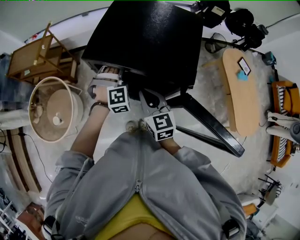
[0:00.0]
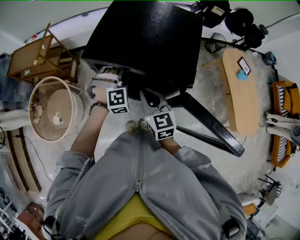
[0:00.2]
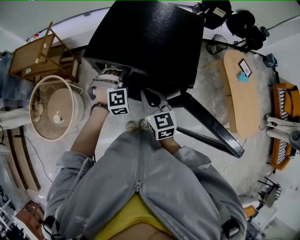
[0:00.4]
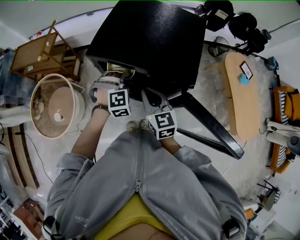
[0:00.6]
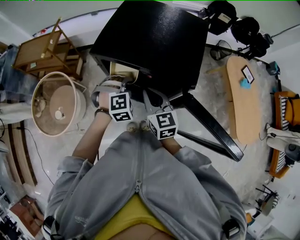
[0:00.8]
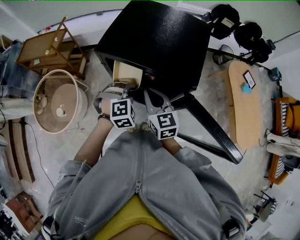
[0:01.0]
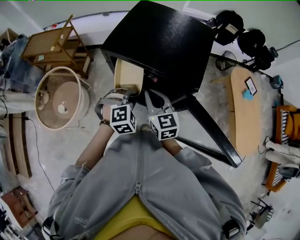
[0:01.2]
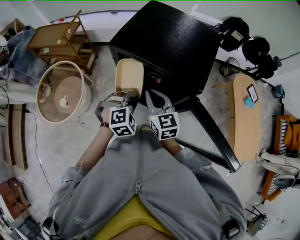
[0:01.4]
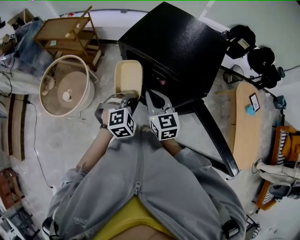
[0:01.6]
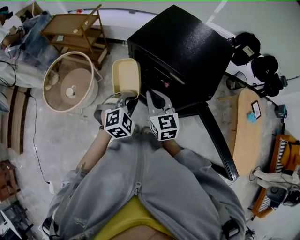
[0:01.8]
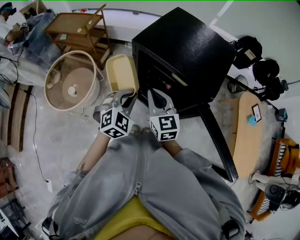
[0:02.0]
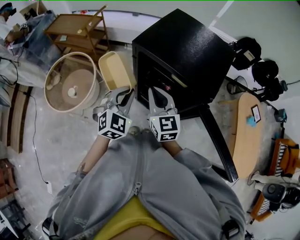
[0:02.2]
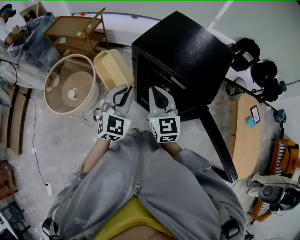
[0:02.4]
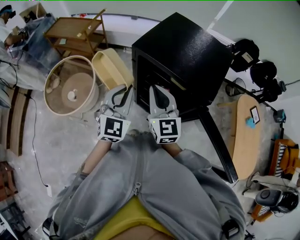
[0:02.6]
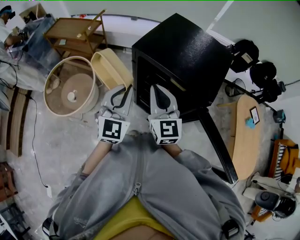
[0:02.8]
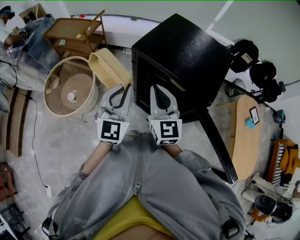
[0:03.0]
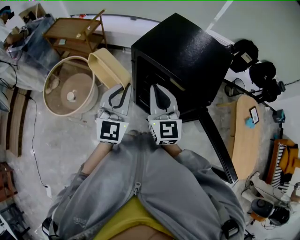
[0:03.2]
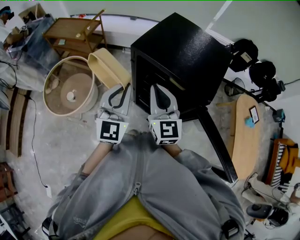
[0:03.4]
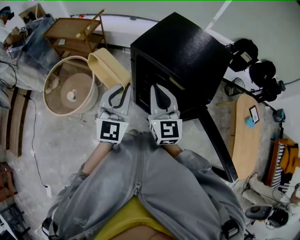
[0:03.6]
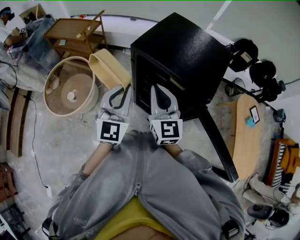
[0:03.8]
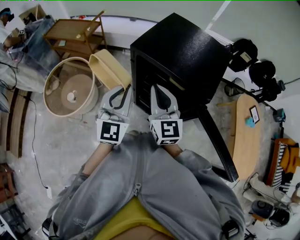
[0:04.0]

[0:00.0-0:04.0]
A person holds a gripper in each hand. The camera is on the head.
0:00.0 to 0:01.4: The left gripper moves backward, approximately 15 cm, swivels roughly 20 degrees, and closes.
0:01.4 to 0:02.6: The right gripper moves upward and to the left, roughly 10 cm. Meanwhile the left gripper travels upward and to the left by some 20 cm, and points its fingers some 40 degrees further upward.
0:02.6 to 0:04.0: The grippers make only small movements.

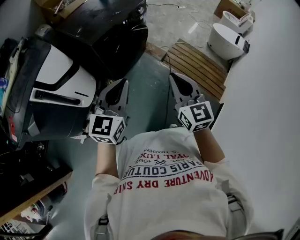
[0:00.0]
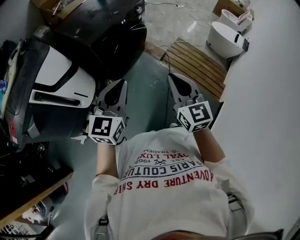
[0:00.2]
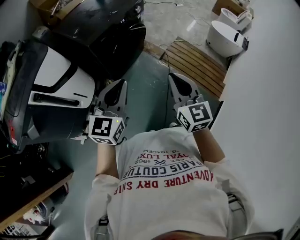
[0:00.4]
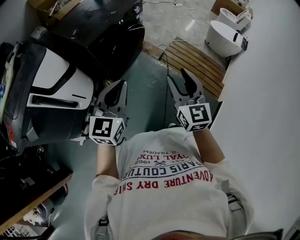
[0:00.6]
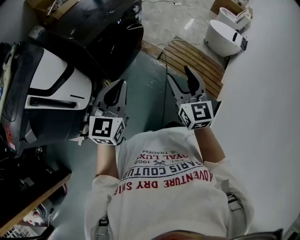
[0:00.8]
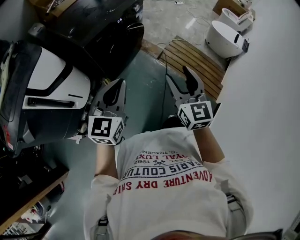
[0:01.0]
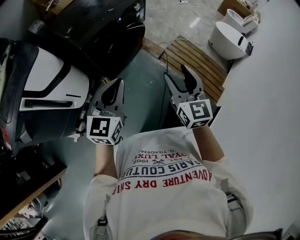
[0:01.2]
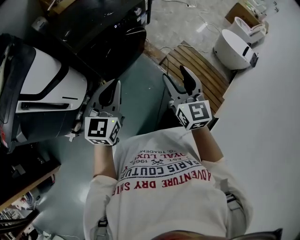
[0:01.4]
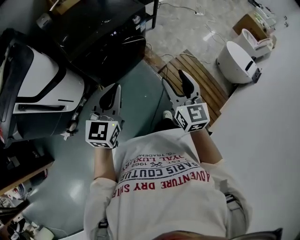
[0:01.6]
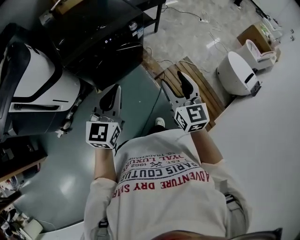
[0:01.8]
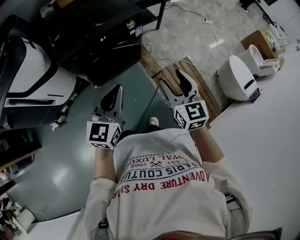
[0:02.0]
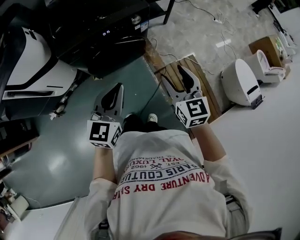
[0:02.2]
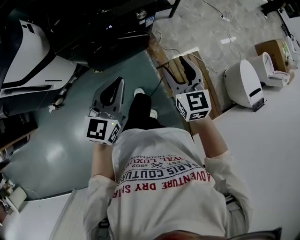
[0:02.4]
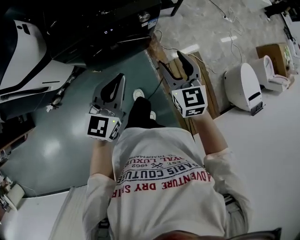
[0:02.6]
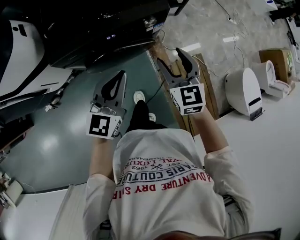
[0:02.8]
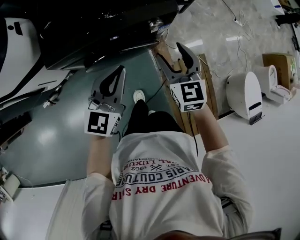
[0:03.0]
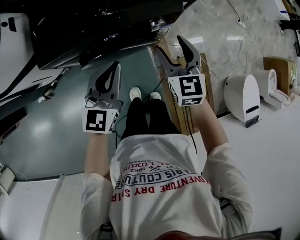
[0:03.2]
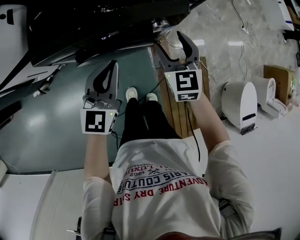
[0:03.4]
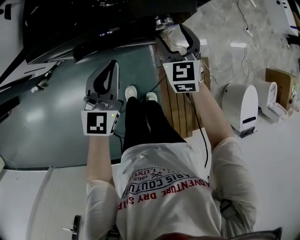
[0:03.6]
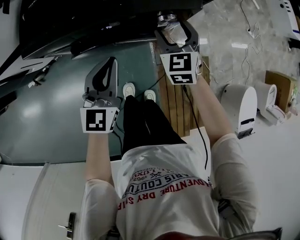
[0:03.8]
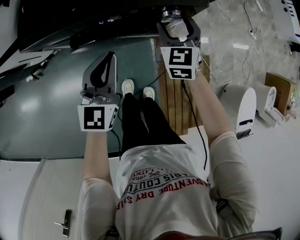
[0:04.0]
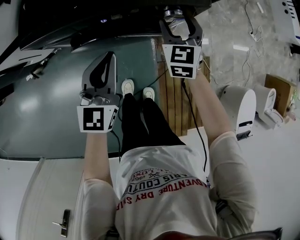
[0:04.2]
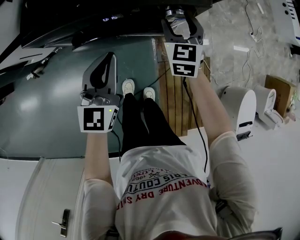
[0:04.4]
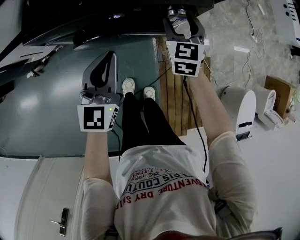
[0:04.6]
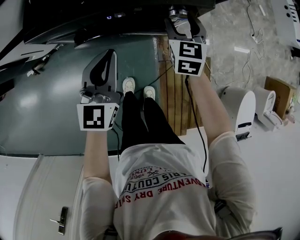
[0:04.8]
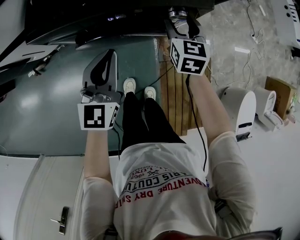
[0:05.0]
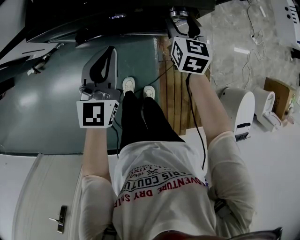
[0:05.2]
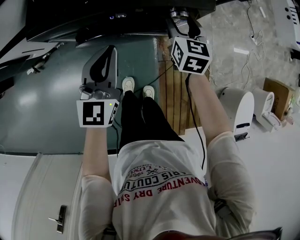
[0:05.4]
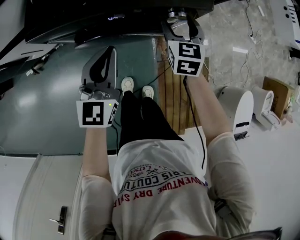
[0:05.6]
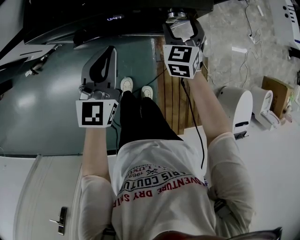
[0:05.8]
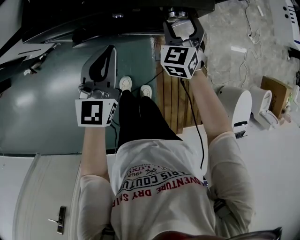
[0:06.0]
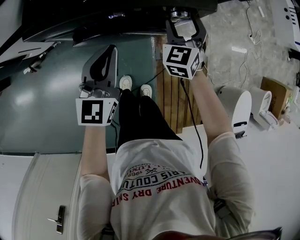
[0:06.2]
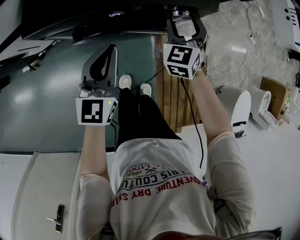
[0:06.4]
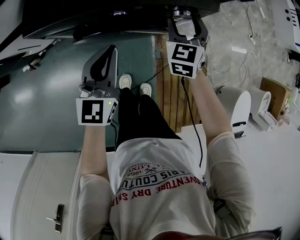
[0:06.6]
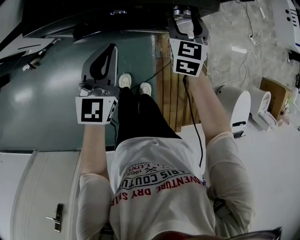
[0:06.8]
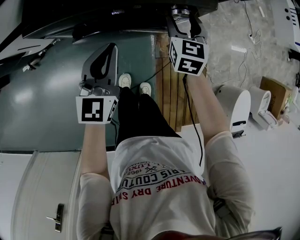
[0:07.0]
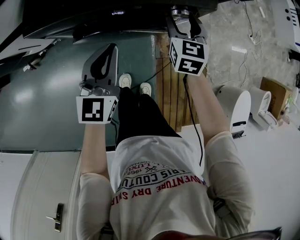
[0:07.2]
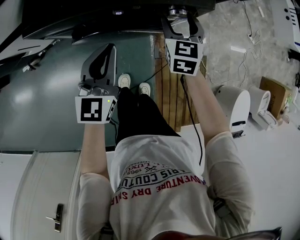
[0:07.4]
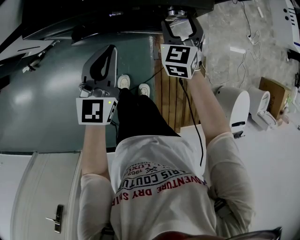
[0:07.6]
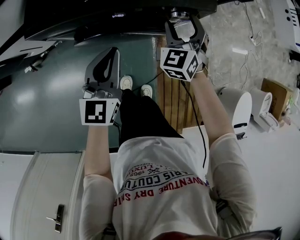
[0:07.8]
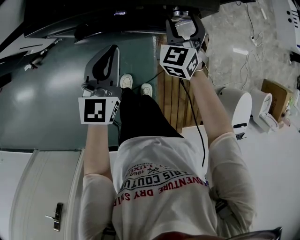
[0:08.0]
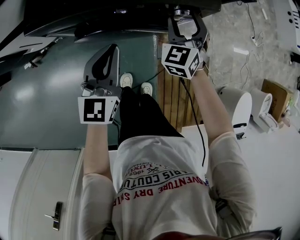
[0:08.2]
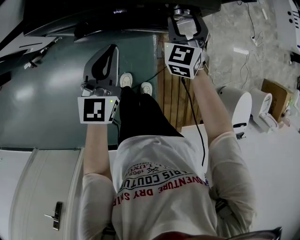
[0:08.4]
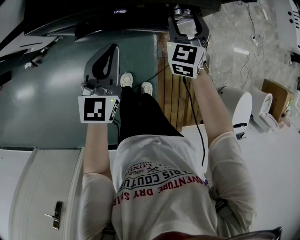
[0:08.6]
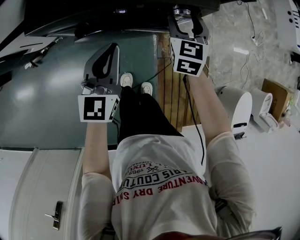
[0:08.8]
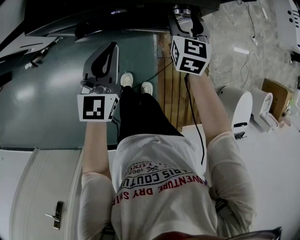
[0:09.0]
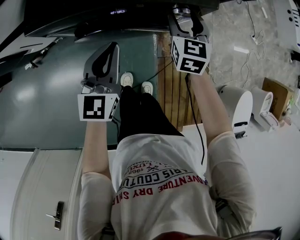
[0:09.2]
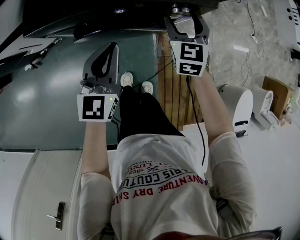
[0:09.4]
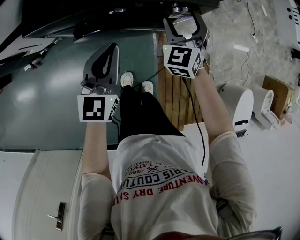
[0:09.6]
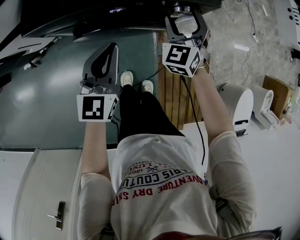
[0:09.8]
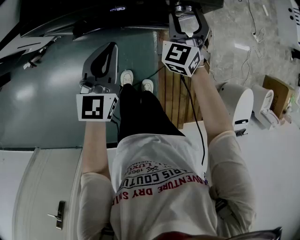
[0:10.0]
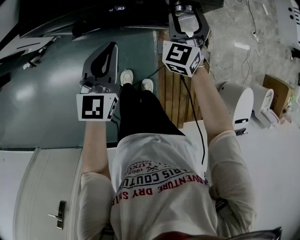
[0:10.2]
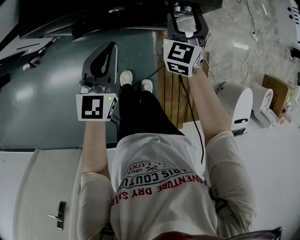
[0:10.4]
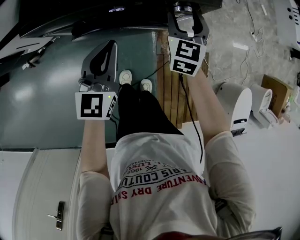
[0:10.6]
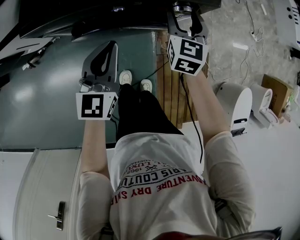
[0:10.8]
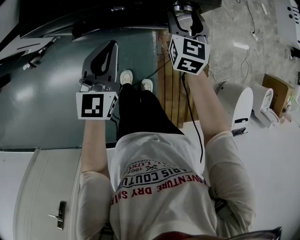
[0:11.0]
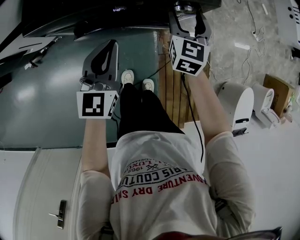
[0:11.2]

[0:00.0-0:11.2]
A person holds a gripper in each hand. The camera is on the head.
0:00.0 to 0:01.6: Both grippers travel together forward and to the right, approximately 25 cm. The right gripper opens.
0:01.6 to 0:03.2: The right gripper heads forward, covering some 40 cm, and swivels some 30 degrees. The left gripper goes approximately 35 cm forward and downward, and turns by about 20 degrees.
0:03.2 to 0:04.8: The right gripper heads downward and forward, covering about 15 cm. The left gripper is displaced downward by some 5 cm.
0:09.6 to 0:11.2: The right gripper turns by approximately 30 degrees.

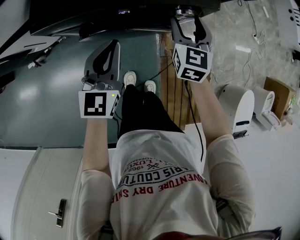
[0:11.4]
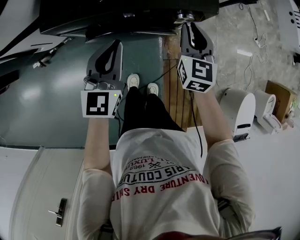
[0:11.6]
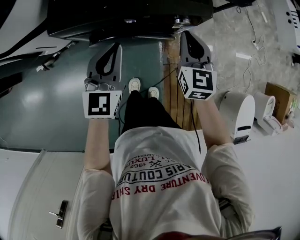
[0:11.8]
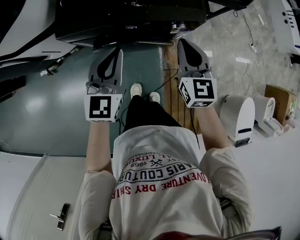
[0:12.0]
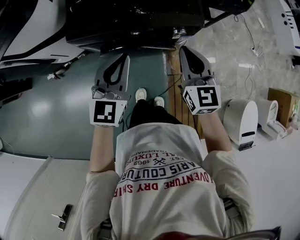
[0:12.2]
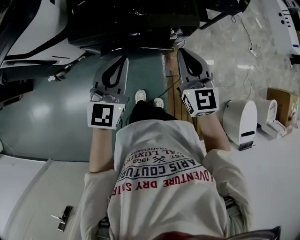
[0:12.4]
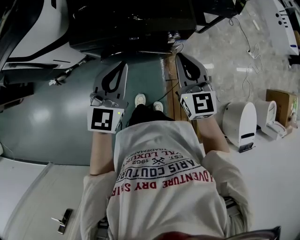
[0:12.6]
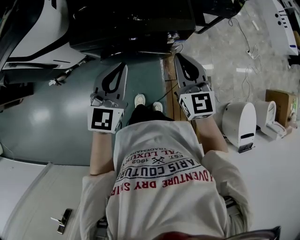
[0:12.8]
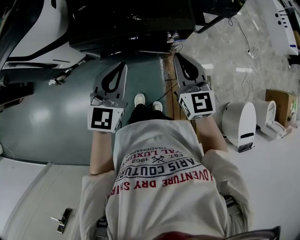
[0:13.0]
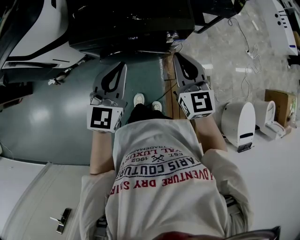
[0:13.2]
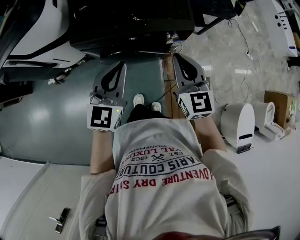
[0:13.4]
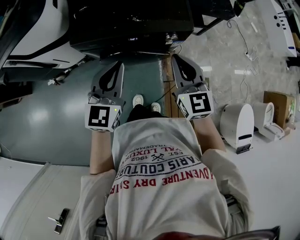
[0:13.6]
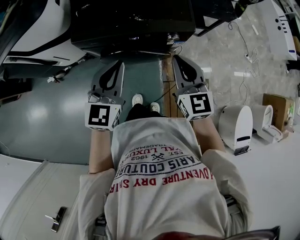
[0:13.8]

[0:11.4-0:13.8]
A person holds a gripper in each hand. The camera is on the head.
0:11.4 to 0:12.6: The right gripper heads upward and backward, covering approximately 20 cm, swivels roughly 20 degrees, and closes. The left gripper is displaced upward by roughly 15 cm.
0:12.6 to 0:13.8: The grippers stay close to where they were, moving slightly.

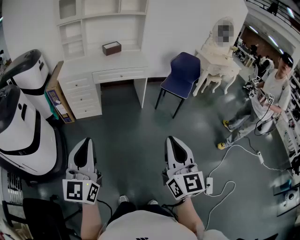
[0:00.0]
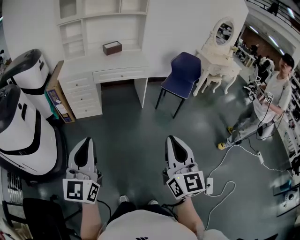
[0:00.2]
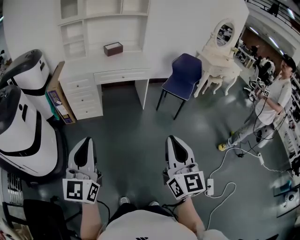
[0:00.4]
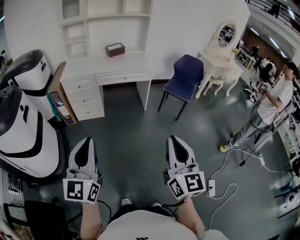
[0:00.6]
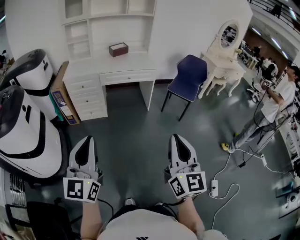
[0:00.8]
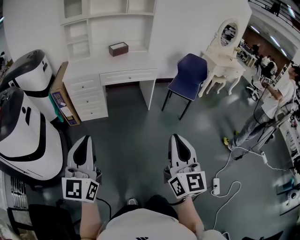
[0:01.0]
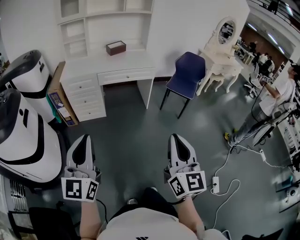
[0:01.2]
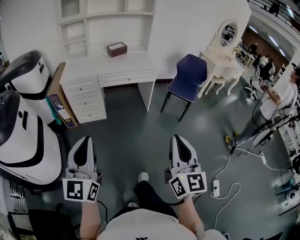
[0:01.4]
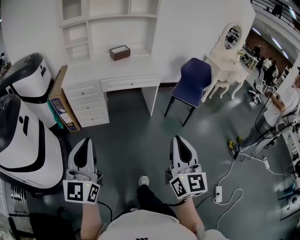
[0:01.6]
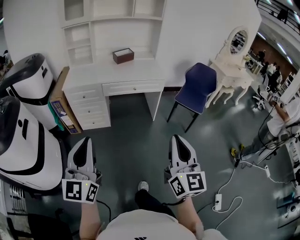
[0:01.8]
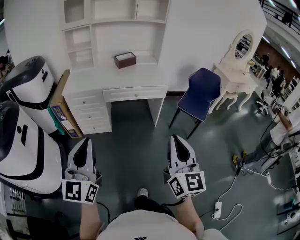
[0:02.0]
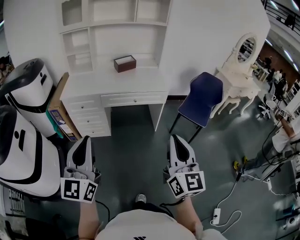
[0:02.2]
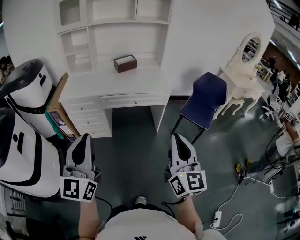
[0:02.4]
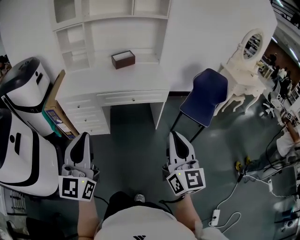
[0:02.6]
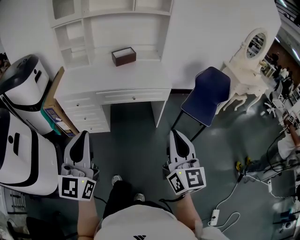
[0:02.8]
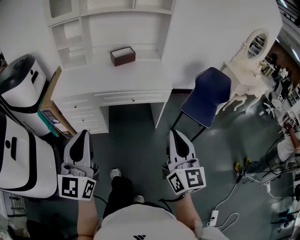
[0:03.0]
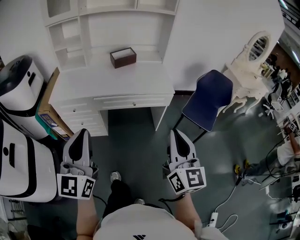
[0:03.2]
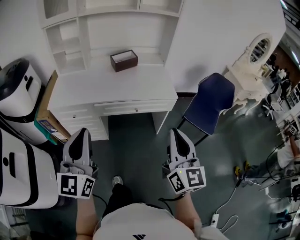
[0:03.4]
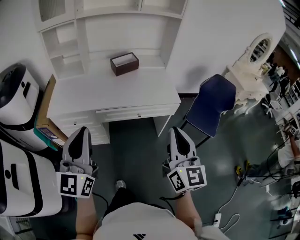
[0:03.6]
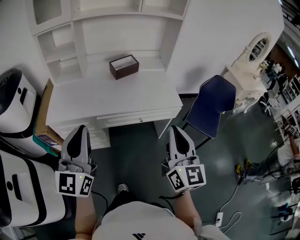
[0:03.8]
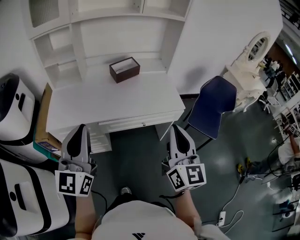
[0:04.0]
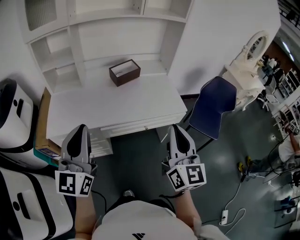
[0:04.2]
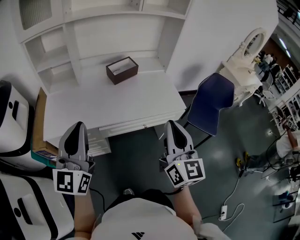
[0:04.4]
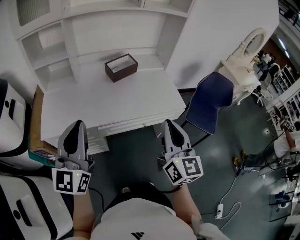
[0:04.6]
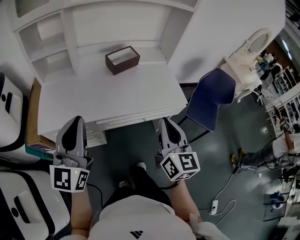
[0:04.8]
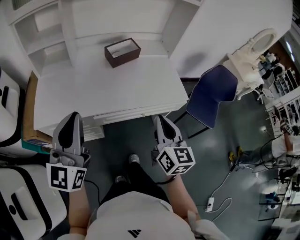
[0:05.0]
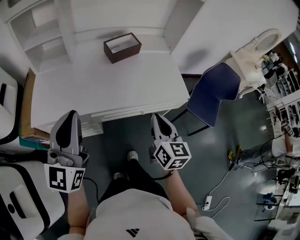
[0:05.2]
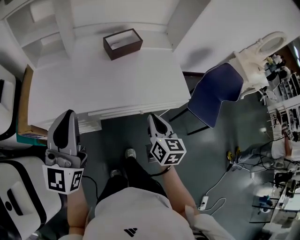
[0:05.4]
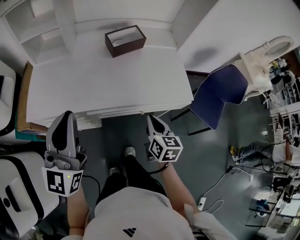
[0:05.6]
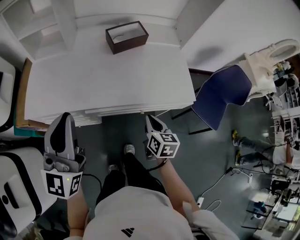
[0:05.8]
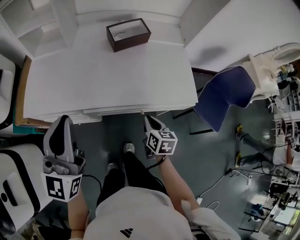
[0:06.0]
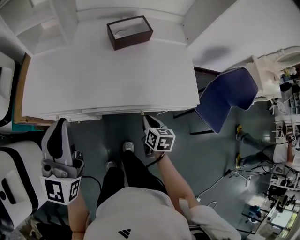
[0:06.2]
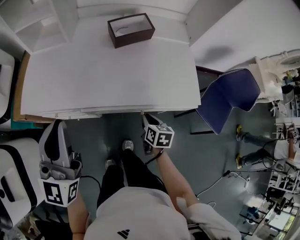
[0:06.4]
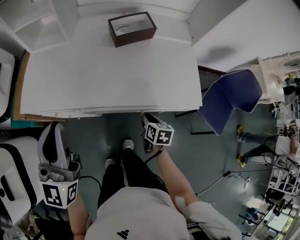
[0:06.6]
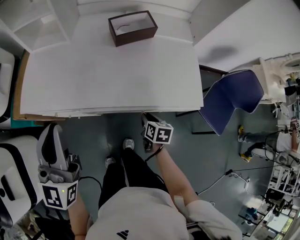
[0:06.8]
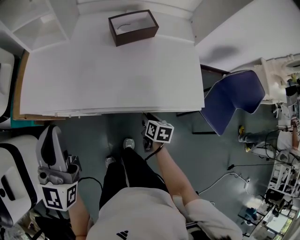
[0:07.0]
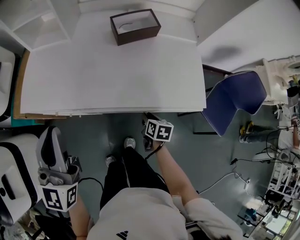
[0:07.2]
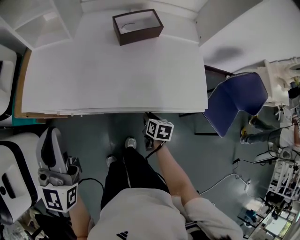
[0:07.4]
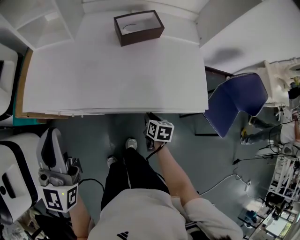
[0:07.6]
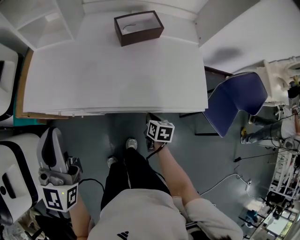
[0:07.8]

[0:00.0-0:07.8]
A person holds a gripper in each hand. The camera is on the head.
0:00.0 to 0:01.6: Both grippers move forward and to the left, roughly 15 cm.
0:01.6 to 0:03.2: Both grippers move forward, about 35 cm.
0:03.2 to 0:04.6: The two grippers go roughly 30 cm forward and to the left.
0:04.6 to 0:06.2: The right gripper heads downward and forward, covering roughly 35 cm, and tilts its fingers some 50 degrees downward. Meanwhile the left gripper shifts approximately 10 cm forward and downward.
0:06.2 to 0:07.8: The right gripper is displaced downward by about 5 cm.
